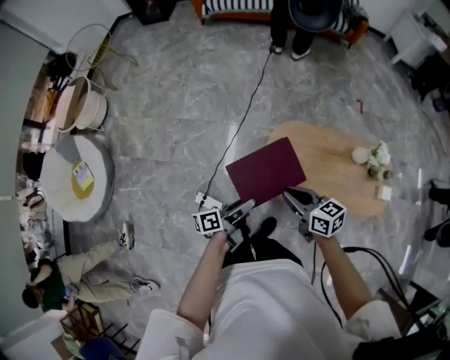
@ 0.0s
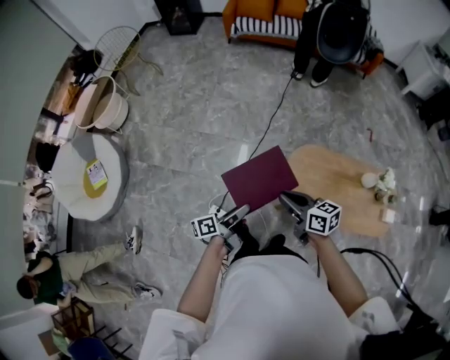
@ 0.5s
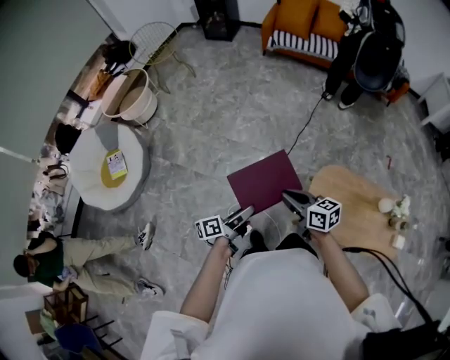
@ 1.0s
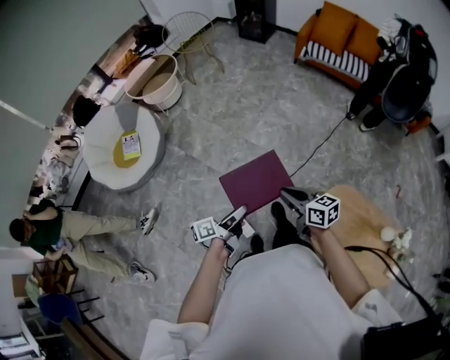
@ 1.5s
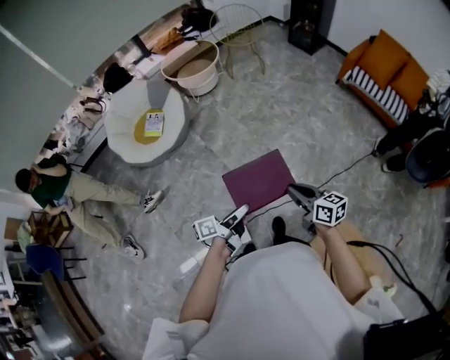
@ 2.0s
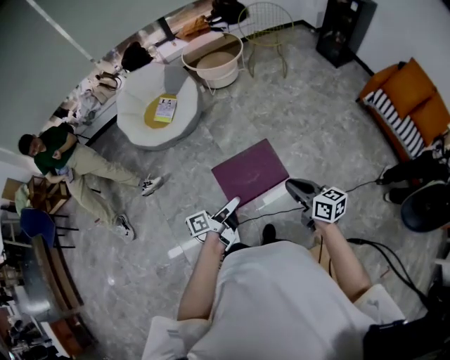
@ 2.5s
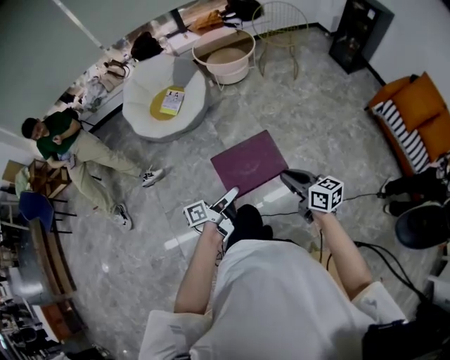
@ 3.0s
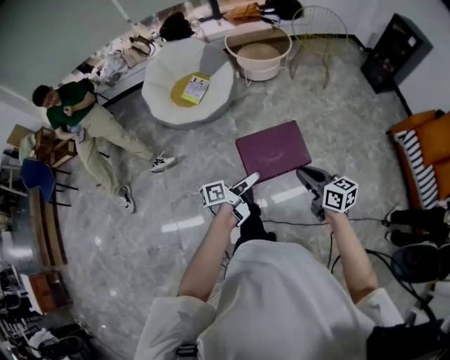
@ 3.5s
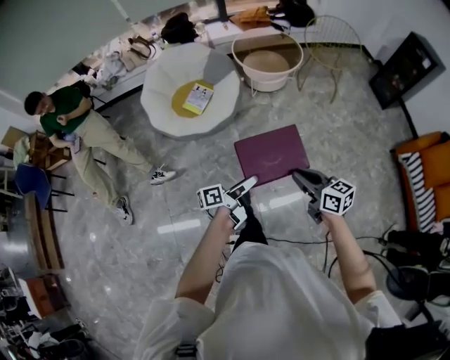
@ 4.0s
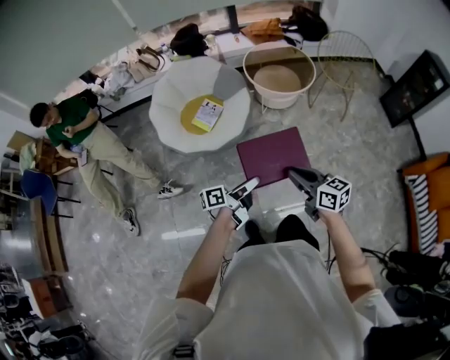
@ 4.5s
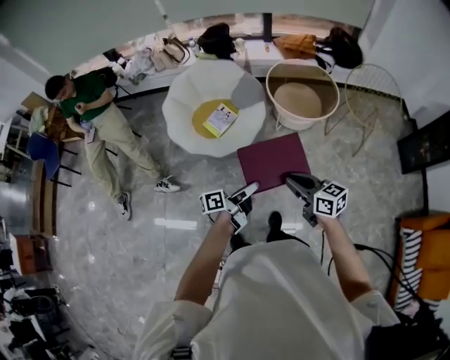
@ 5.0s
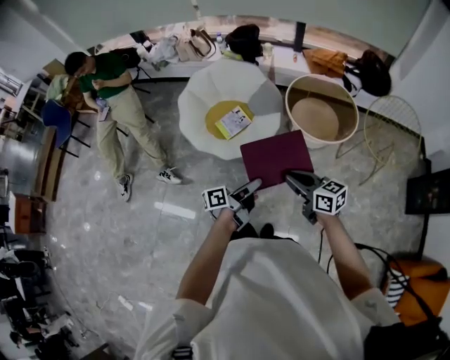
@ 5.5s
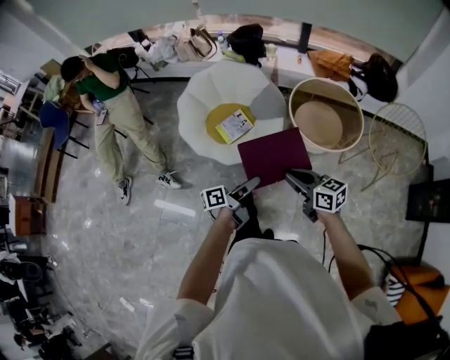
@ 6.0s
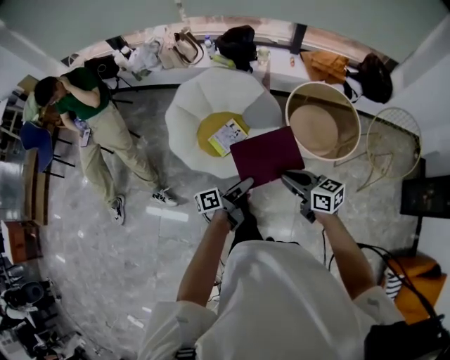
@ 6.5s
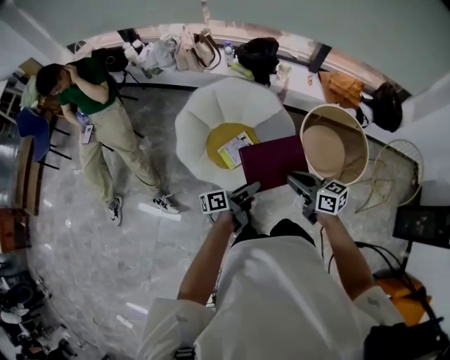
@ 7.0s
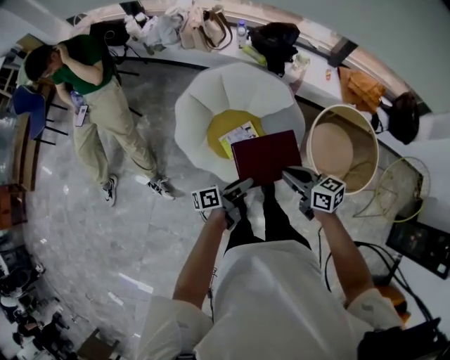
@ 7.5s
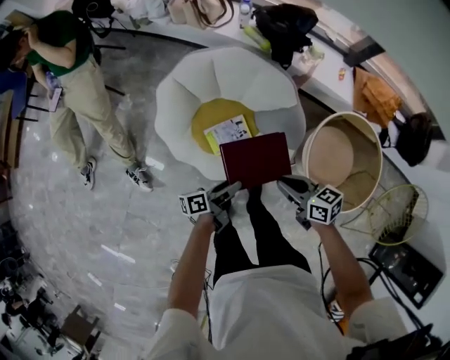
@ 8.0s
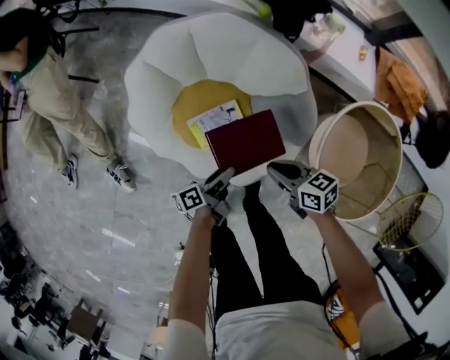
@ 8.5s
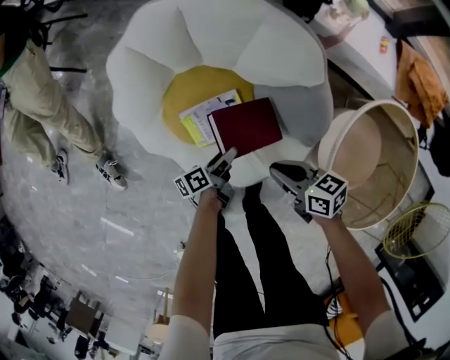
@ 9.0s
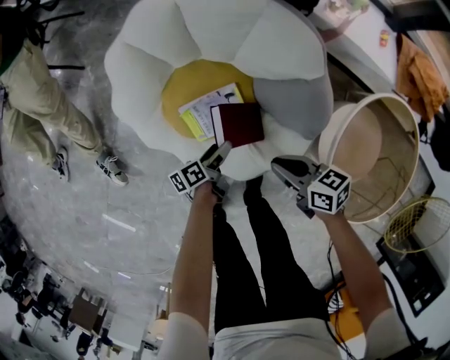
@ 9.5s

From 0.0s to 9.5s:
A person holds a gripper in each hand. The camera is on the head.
From 0.0s to 2.0s: The right gripper shifts by about 40 cm, and changes its angle by some 40 degrees.
From 2.0s to 4.0s: The right gripper shifts by some 40 cm, and rotates some 30 degrees.
From 4.0s to 5.5s: The right gripper shifts by about 40 cm, and turns by approximately 30 degrees.
From 5.5s to 7.5s: The right gripper ends up approximately 40 cm from where it was.
From 7.5s to 9.5s: The right gripper heads downward, covering about 40 cm, and swivels roughly 20 degrees.

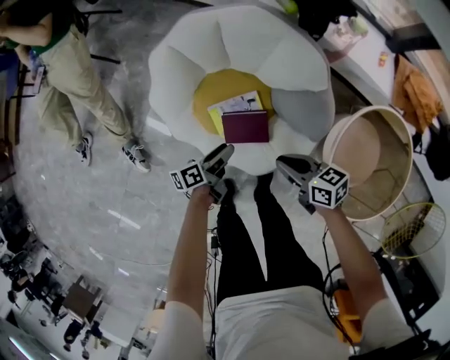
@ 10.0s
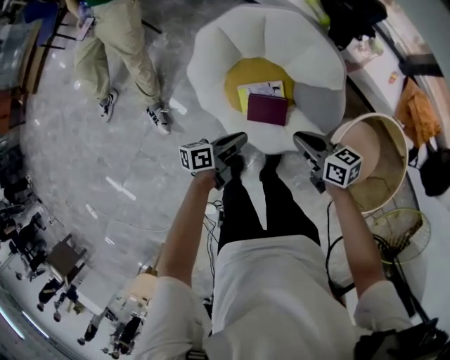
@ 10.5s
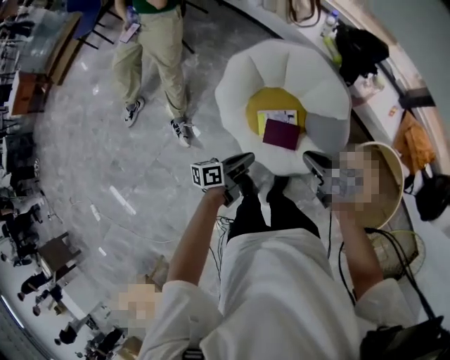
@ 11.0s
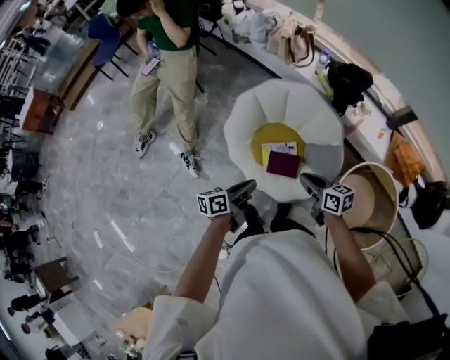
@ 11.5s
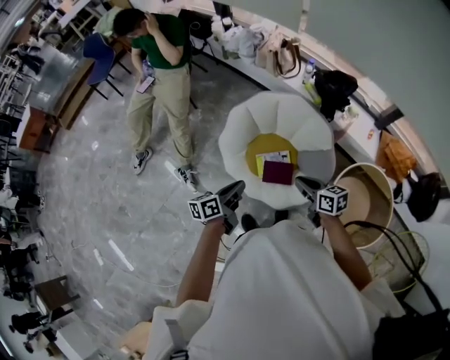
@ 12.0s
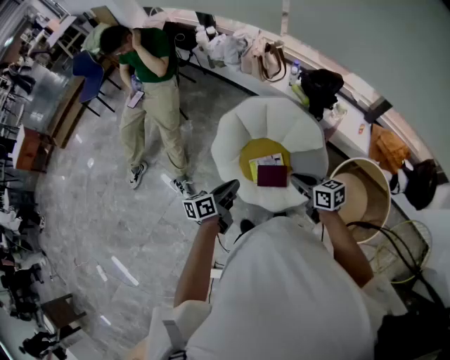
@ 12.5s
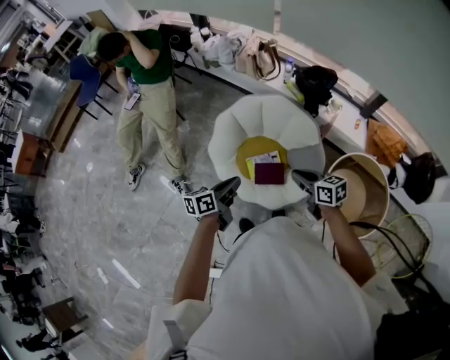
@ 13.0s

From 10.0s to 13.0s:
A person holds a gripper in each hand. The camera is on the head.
From 10.0s to 11.5s: The right gripper heads upward, covering approximately 25 cm.
From 11.5s to 13.0s: The right gripper heads upward, covering about 5 cm.

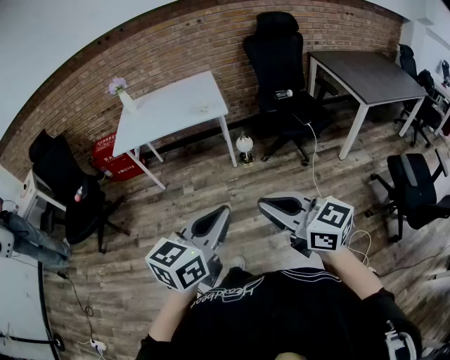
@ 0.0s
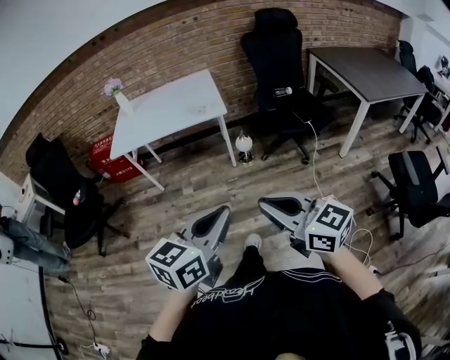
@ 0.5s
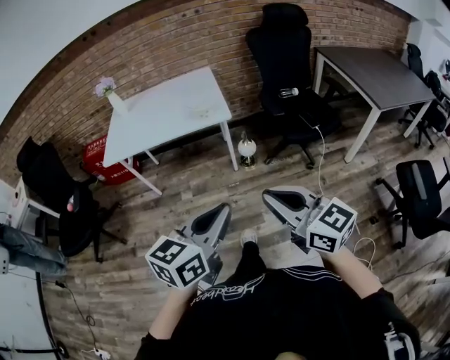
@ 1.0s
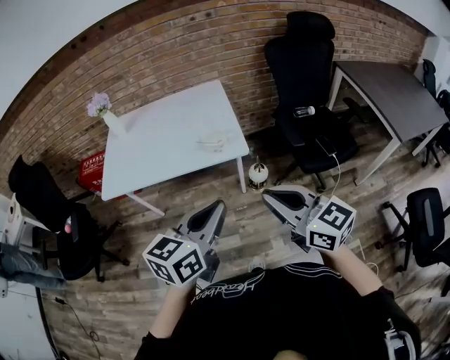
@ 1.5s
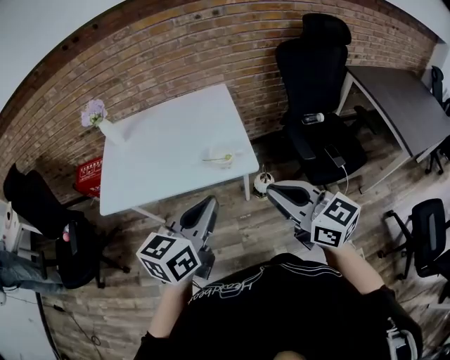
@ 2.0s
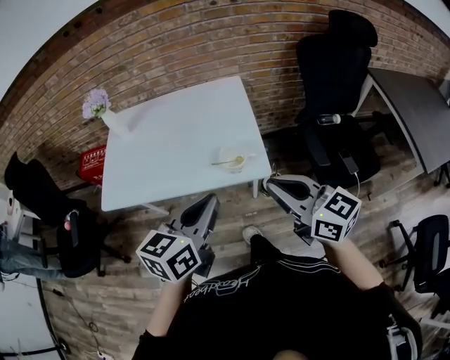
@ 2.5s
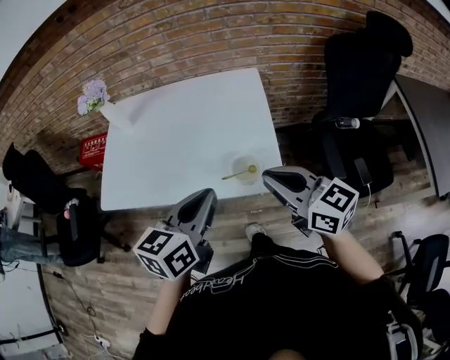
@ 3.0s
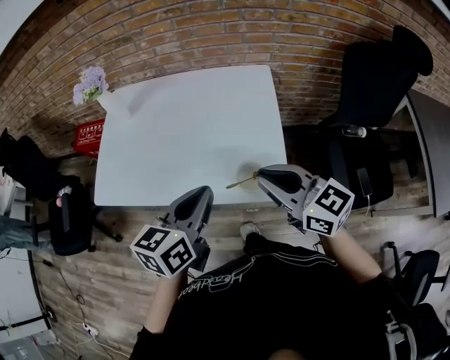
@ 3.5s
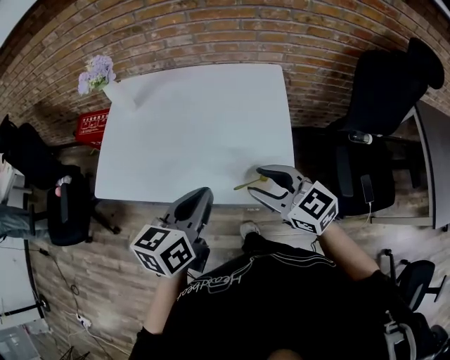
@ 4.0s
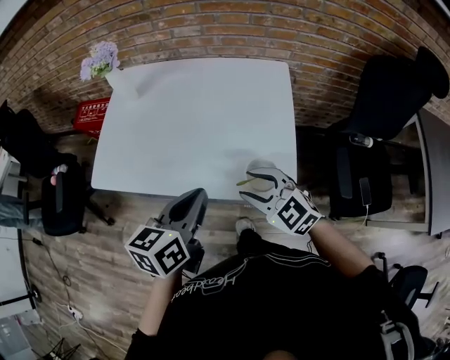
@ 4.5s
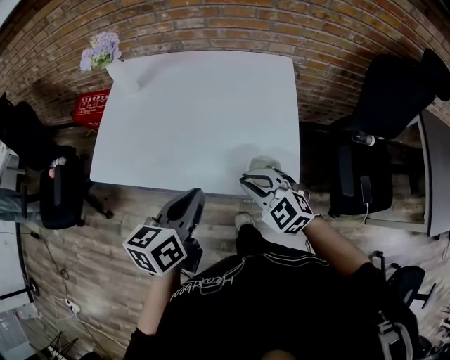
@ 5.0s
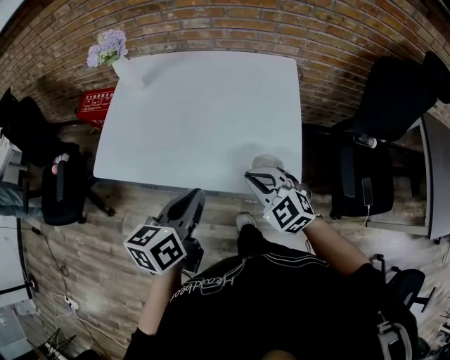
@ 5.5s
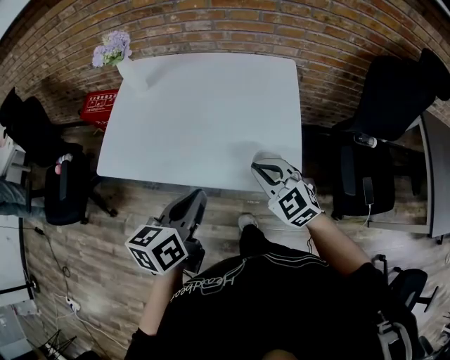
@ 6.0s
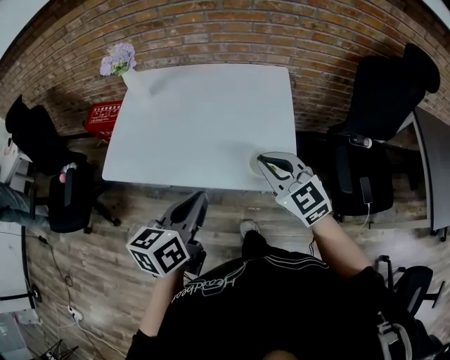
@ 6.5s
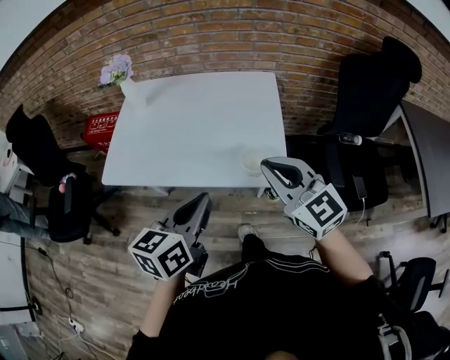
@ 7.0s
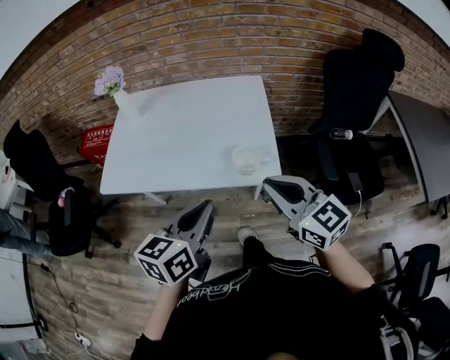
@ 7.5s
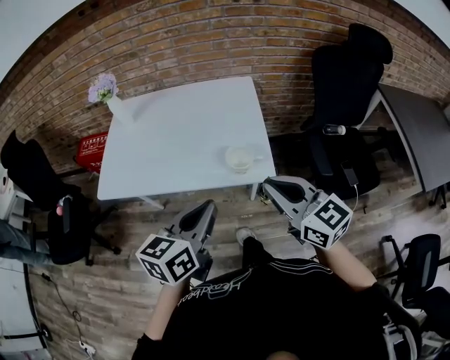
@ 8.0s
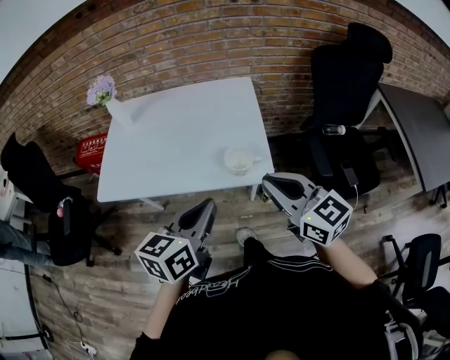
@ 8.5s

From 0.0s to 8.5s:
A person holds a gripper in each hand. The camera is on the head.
From 0.0s to 2.0s: Both grippers are carried forward, some 50 cm.
From 2.0s to 4.0s: Both grippers travel together forward and downward, about 25 cm. The right gripper turns by some 30 degrees, and opens its fingers. The left gripper swivels approximately 20 degrees.
From 4.0s to 6.5s: The left gripper goes roughly 5 cm backward, while the right gripper travels downward and back again, approximately 10 cm each way, swivels roughly 20 degrees, and closes up.
From 6.5s to 8.5s: The right gripper is displaced backward, upward and to the right by about 15 cm, and swivels about 30 degrees; the left gripper is displaced backward and to the right by about 10 cm.

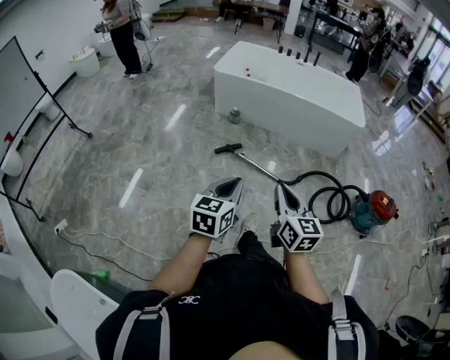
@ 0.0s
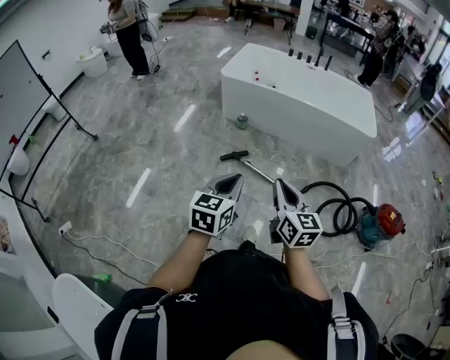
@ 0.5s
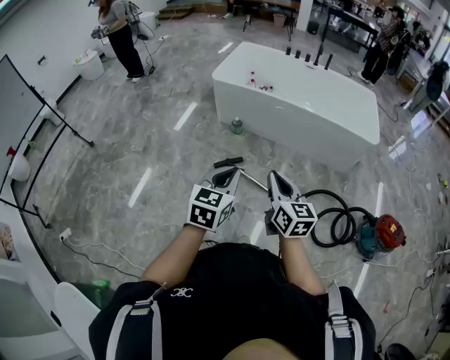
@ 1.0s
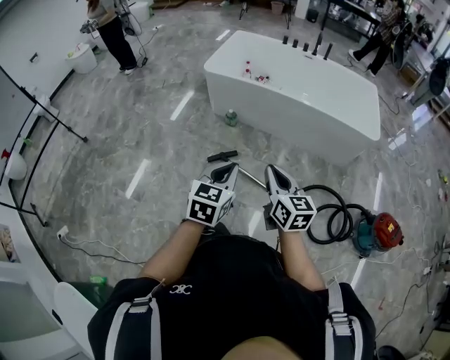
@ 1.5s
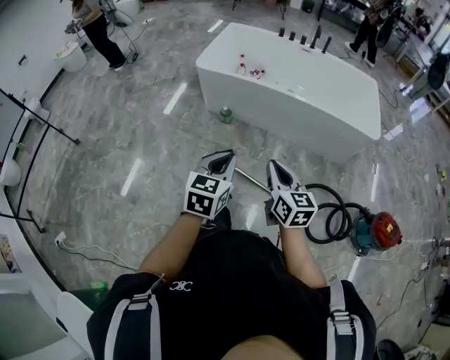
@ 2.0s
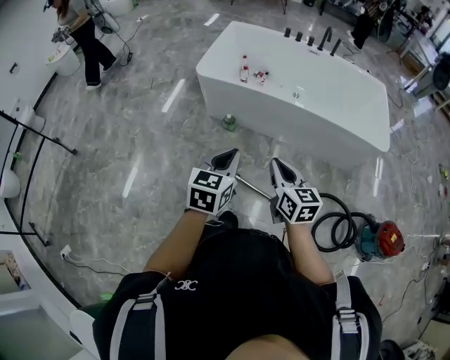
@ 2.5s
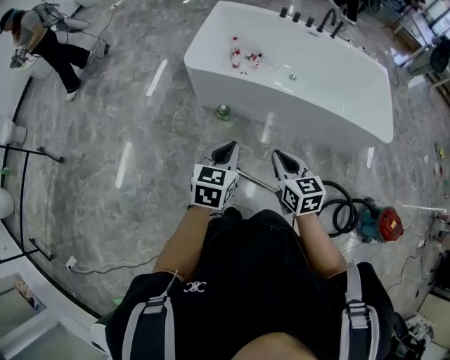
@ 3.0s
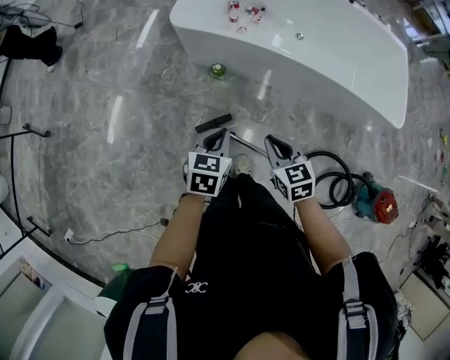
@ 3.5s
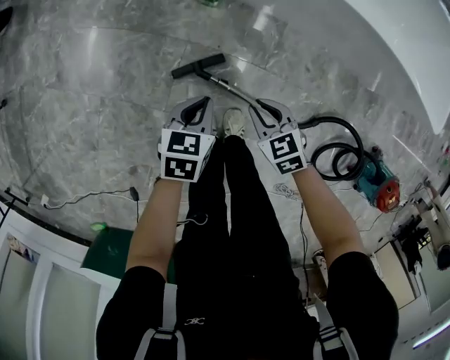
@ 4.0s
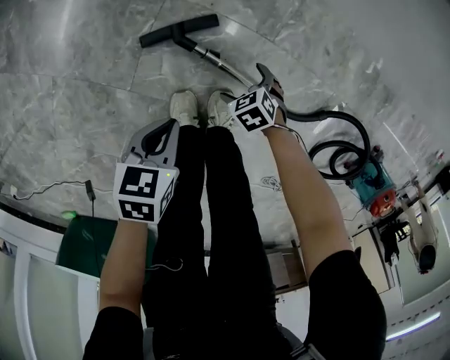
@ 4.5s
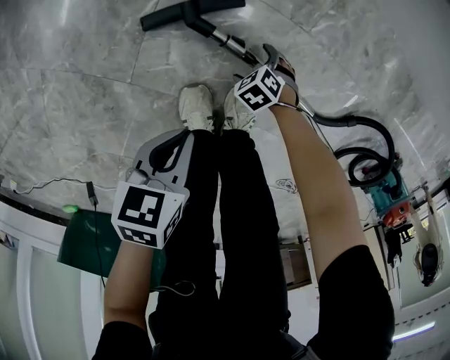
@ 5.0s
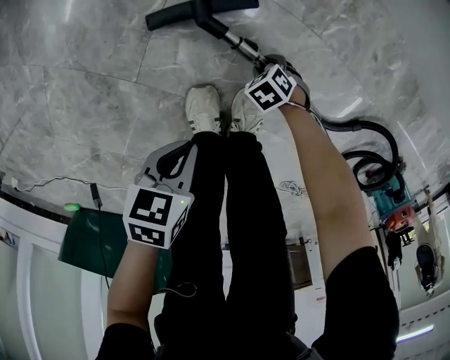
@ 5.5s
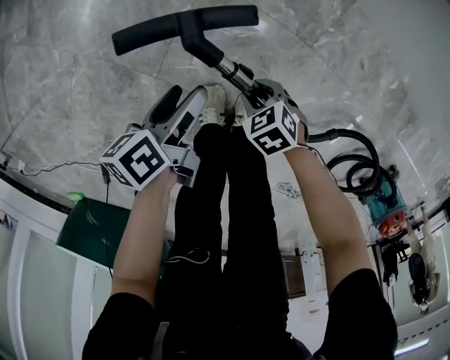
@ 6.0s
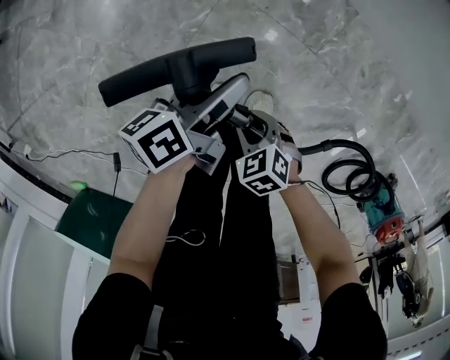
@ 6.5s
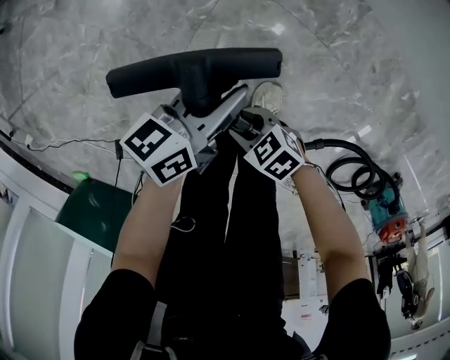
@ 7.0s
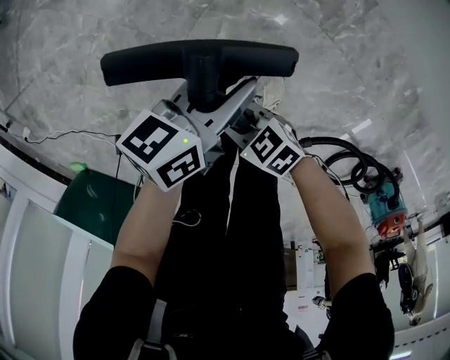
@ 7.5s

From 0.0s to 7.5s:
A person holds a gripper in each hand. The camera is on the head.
From 0.0s to 2.0s: The two grippers travel together, forward, about 40 cm.
From 2.0s to 4.0s: Both grippers move downward and forward, roughly 60 cm. The right gripper points its fingers roughly 40 degrees further downward. Meanwhile the left gripper changes its angle by about 30 degrees.
From 4.0s to 5.5s: The right gripper moves downward, approximately 50 cm, rotates roughly 40 degrees, and opens, then closes once more; the left gripper moves downward, roughly 30 cm, and changes its angle by about 30 degrees.
From 5.5s to 7.5s: The left gripper heads upward, covering roughly 15 cm, changes its angle by about 40 degrees, and opens and closes again. The right gripper heads upward, covering approximately 35 cm, and angles its fingers upward, by approximately 50 degrees.
